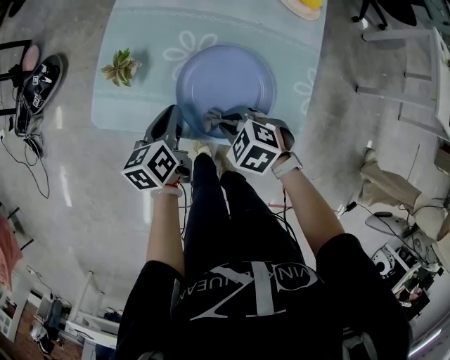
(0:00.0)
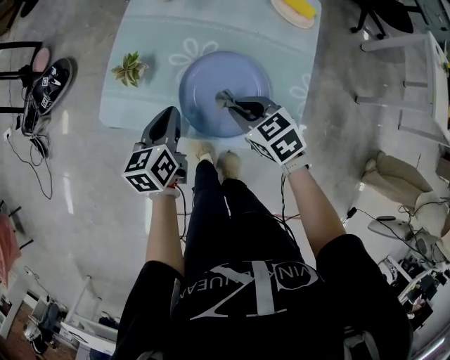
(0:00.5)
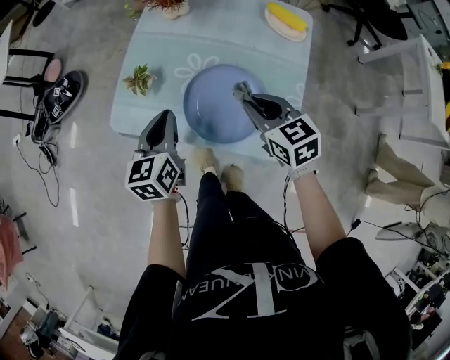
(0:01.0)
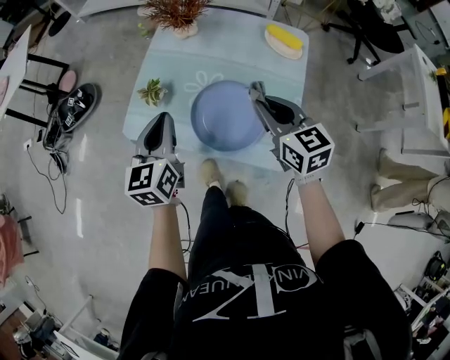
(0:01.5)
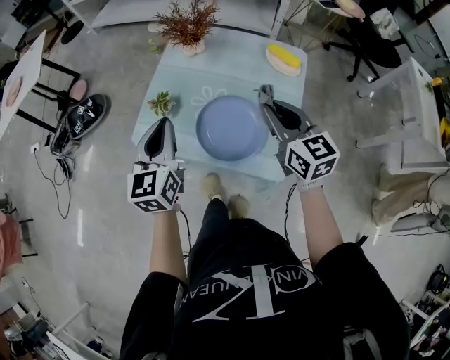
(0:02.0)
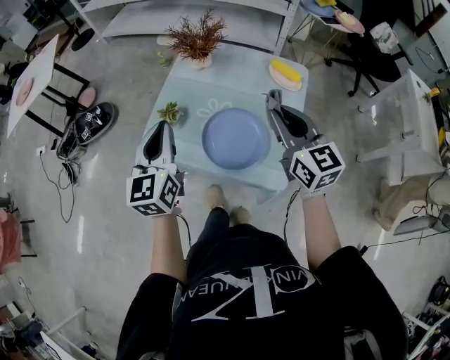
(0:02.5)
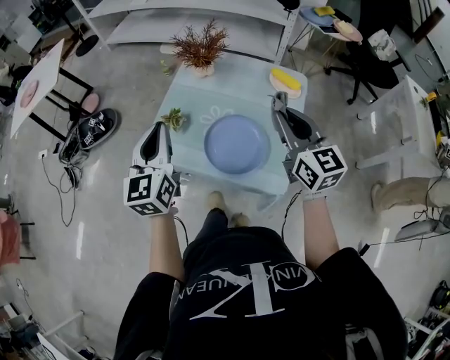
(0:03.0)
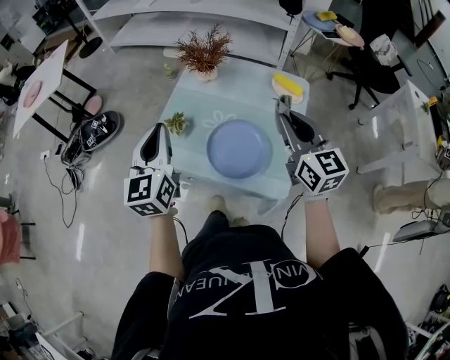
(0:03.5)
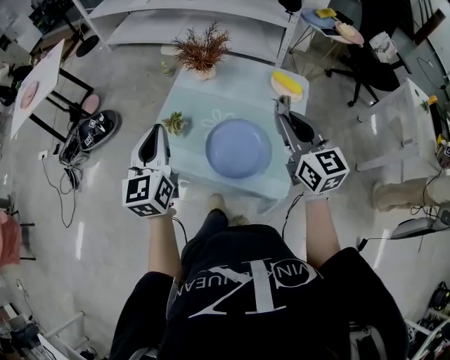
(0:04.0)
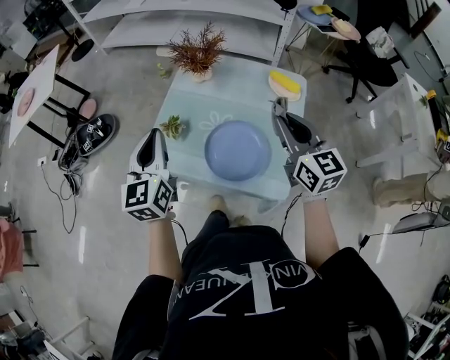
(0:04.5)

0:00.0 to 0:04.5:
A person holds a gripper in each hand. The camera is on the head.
0:00.0 to 0:02.0: The left gripper shifts approximately 25 cm upward, and turns by about 40 degrees. The right gripper moves upward and to the right, some 30 cm, and angles its fingers upward, by roughly 50 degrees.
0:02.0 to 0:04.5: The left gripper travels upward and to the left by approximately 10 cm, while the right gripper moves upward, roughly 5 cm.

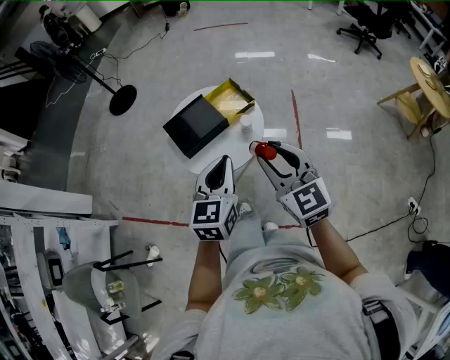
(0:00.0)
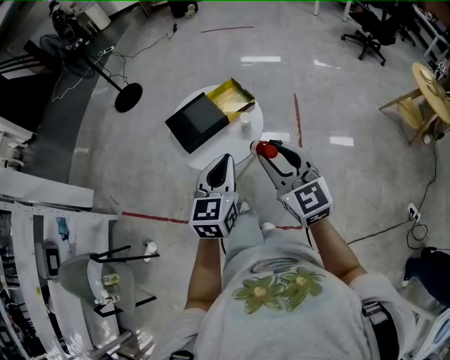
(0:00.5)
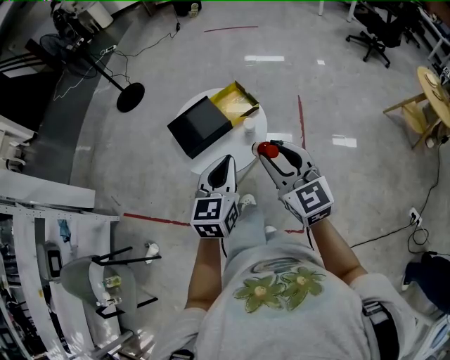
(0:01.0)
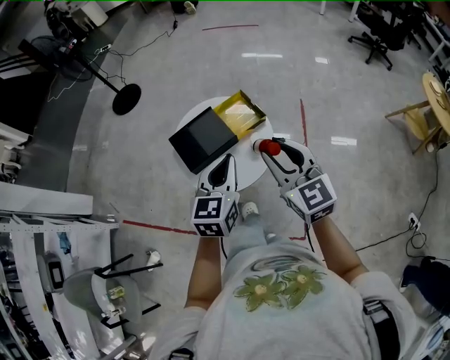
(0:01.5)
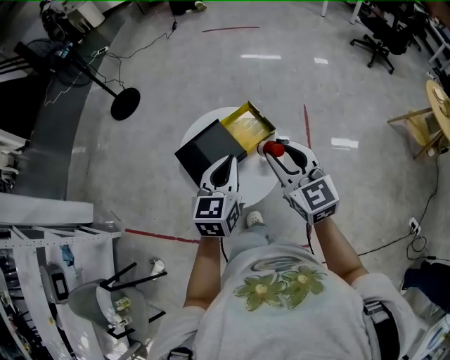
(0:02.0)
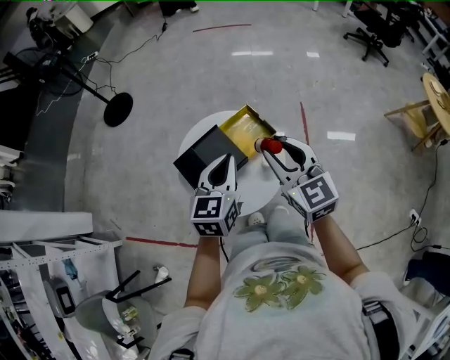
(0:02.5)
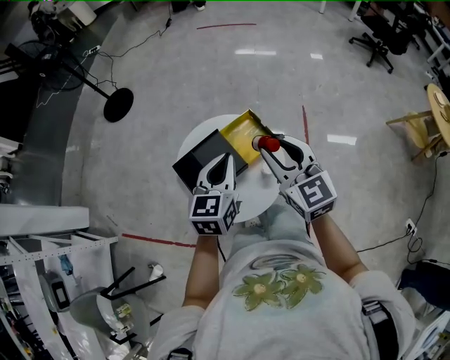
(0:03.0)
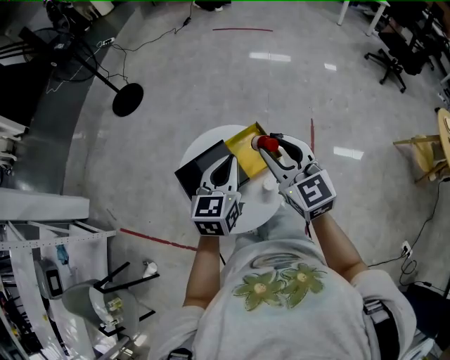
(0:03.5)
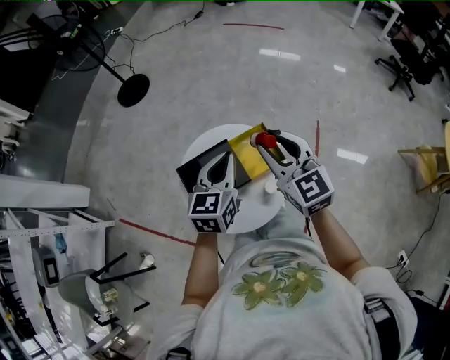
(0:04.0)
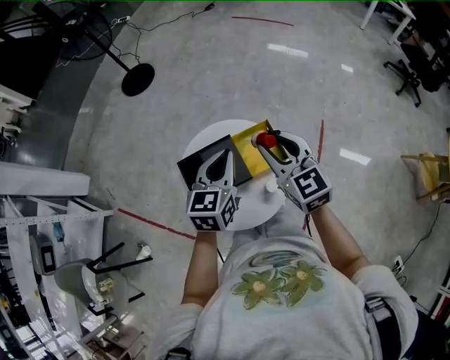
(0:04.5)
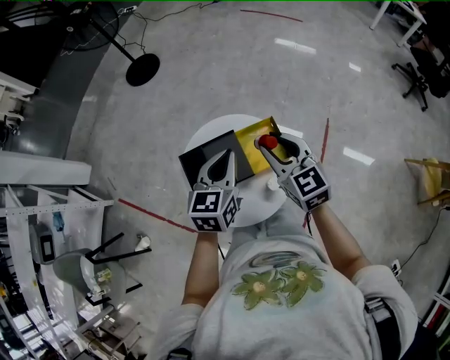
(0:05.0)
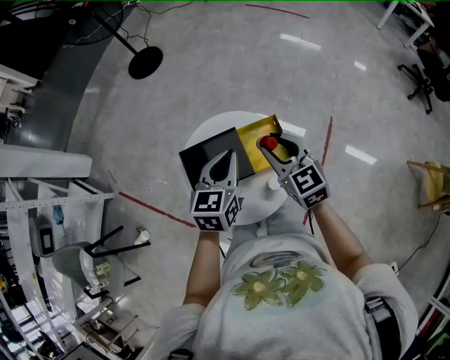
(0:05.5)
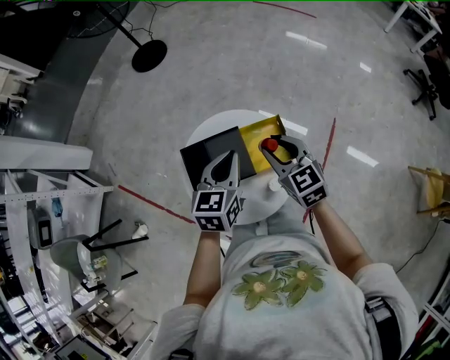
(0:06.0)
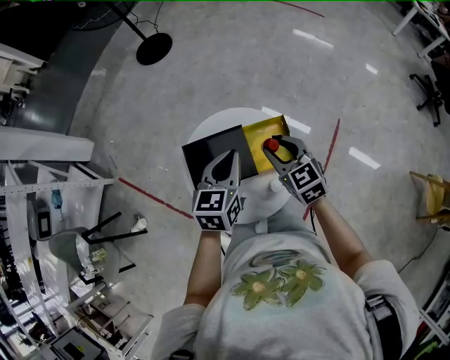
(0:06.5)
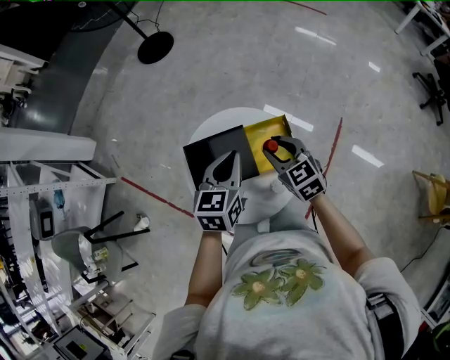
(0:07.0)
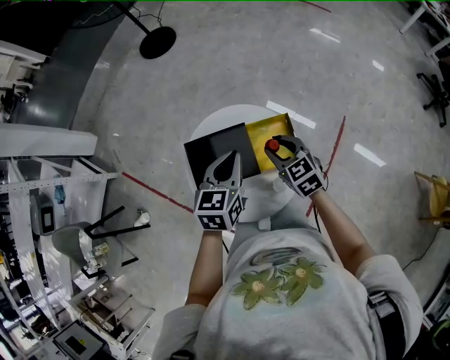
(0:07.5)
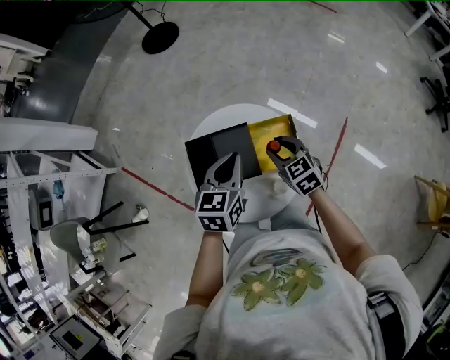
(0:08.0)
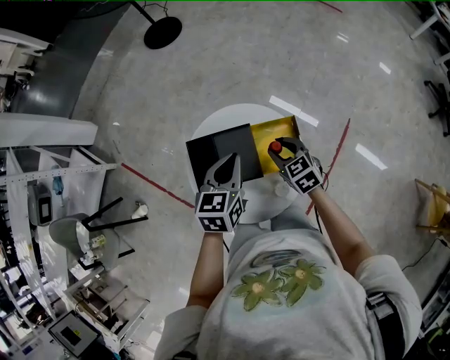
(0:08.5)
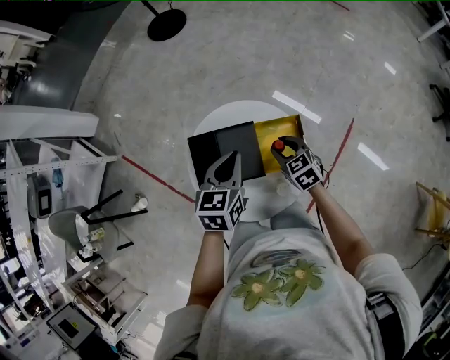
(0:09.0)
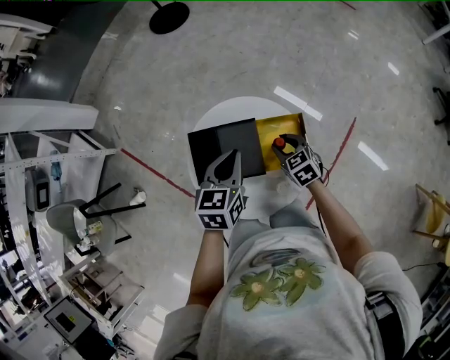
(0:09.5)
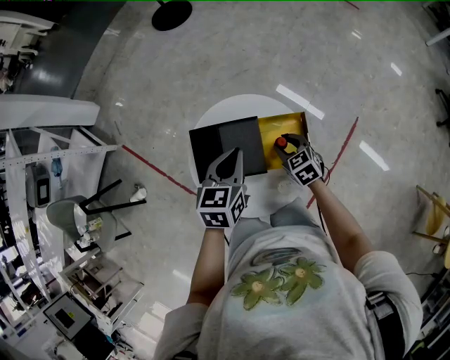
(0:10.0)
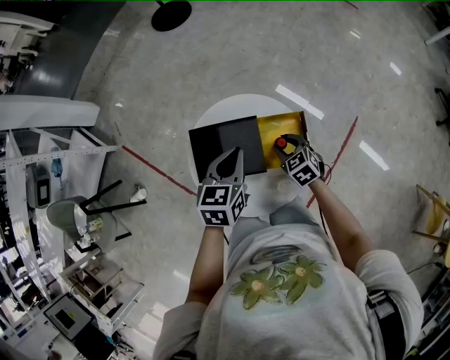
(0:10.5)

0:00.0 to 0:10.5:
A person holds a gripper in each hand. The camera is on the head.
0:00.0 to 0:02.0: Both grippers travel together forward, some 20 cm.
0:02.0 to 0:04.0: The two grippers go roughly 15 cm forward.
0:04.0 to 0:06.5: The left gripper heads downward, covering roughly 5 cm. The right gripper goes roughly 15 cm downward, and changes its angle by approximately 20 degrees.
0:06.5 to 0:08.5: The right gripper is displaced downward by approximately 10 cm.
0:08.5 to 0:10.5: The right gripper moves downward, some 5 cm.

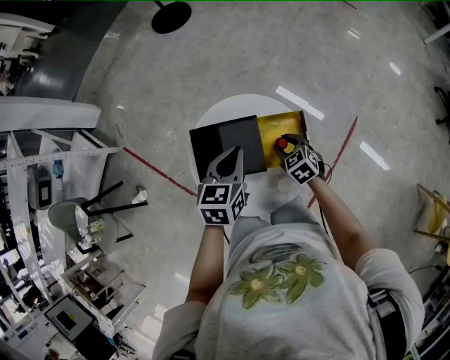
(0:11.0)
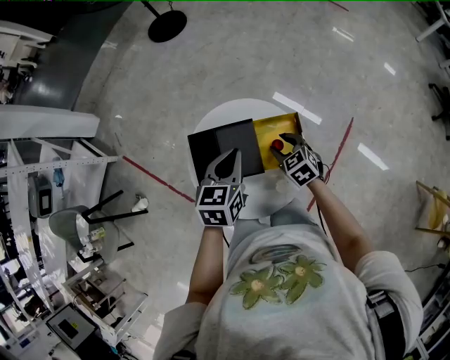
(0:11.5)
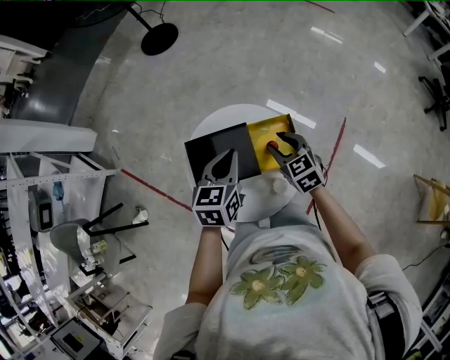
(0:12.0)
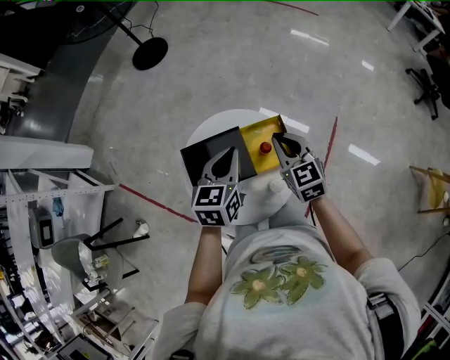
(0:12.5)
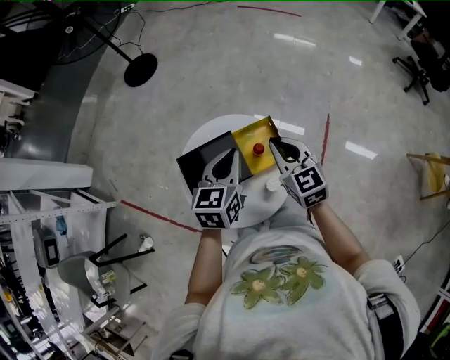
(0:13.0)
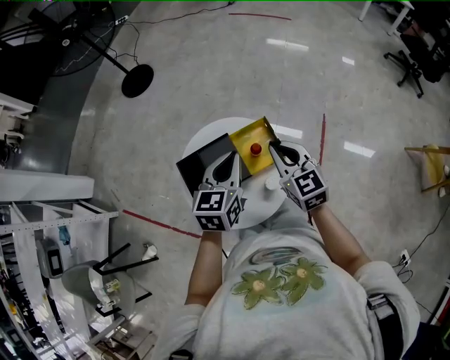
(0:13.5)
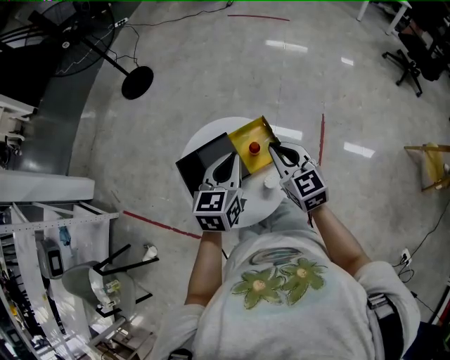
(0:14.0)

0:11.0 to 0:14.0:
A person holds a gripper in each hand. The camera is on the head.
0:11.0 to 0:12.5: The left gripper heads upward, covering roughly 5 cm. The right gripper shifts approximately 20 cm upward, changes its angle by about 30 degrees, and closes its fingers.
0:12.5 to 0:14.0: The right gripper travels backward by some 5 cm; the left gripper changes place by about 5 cm.

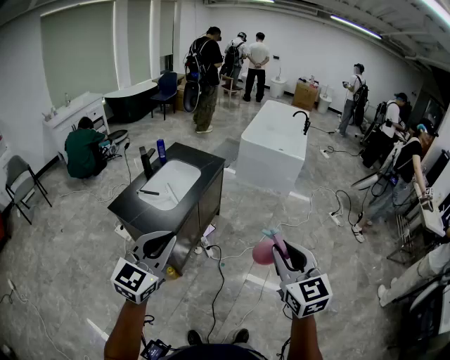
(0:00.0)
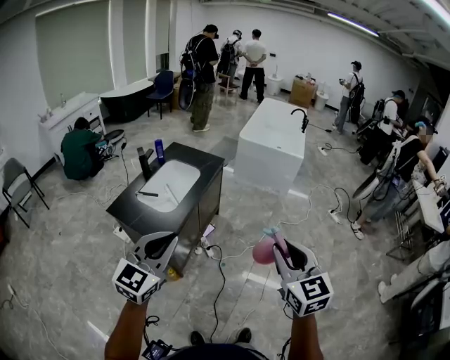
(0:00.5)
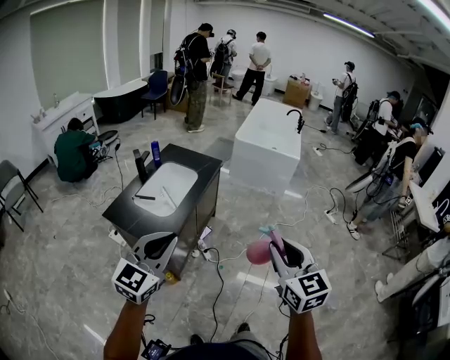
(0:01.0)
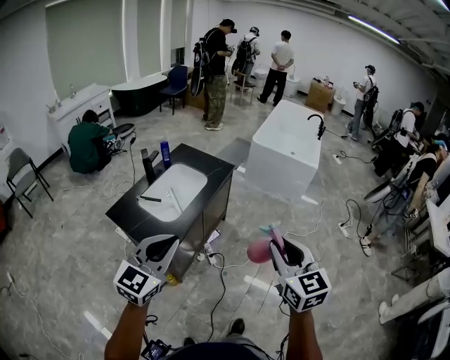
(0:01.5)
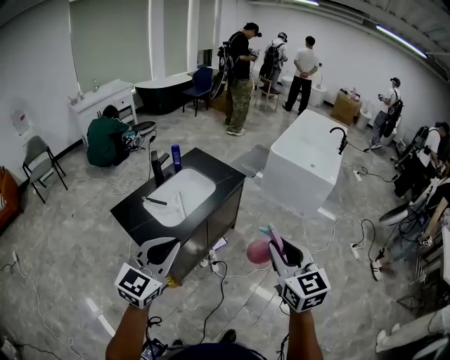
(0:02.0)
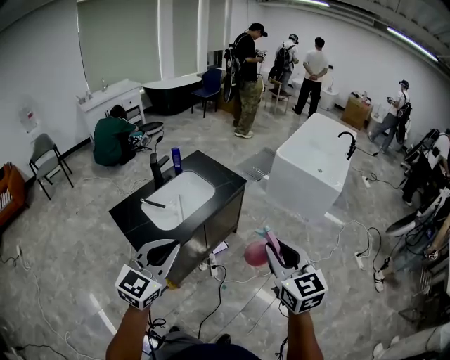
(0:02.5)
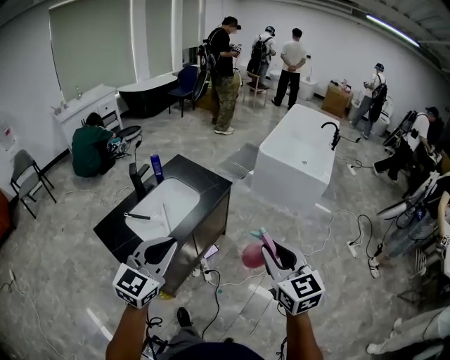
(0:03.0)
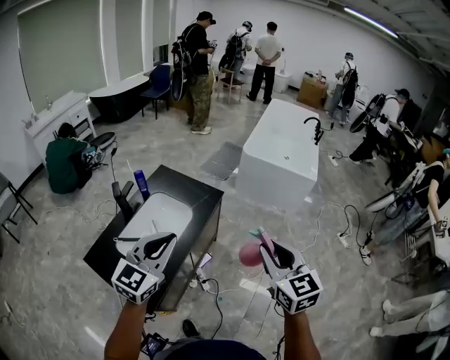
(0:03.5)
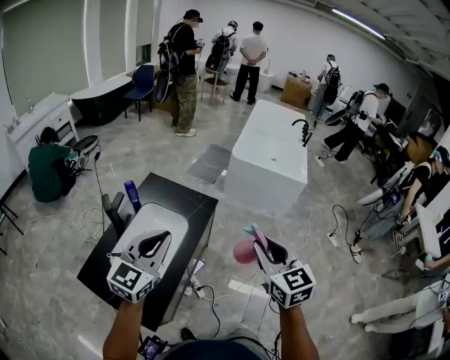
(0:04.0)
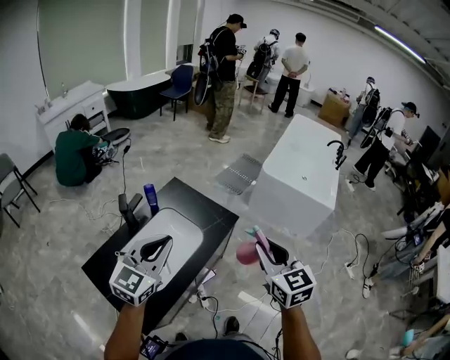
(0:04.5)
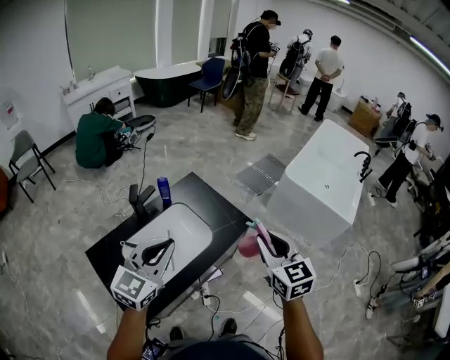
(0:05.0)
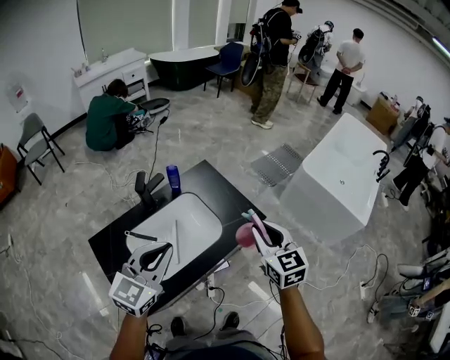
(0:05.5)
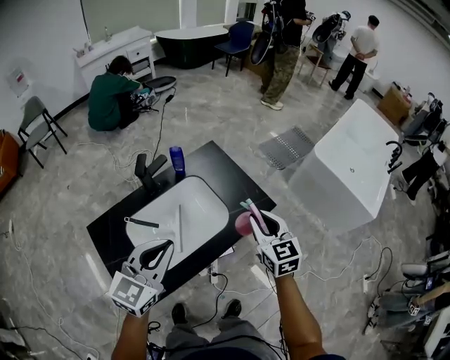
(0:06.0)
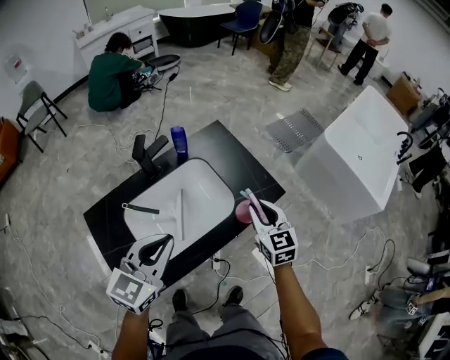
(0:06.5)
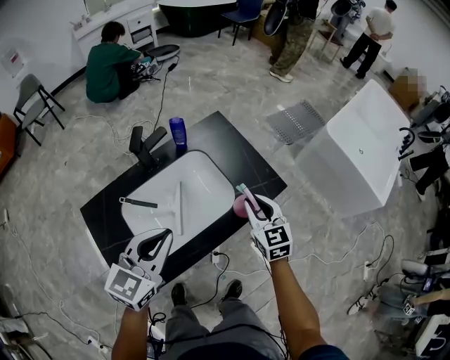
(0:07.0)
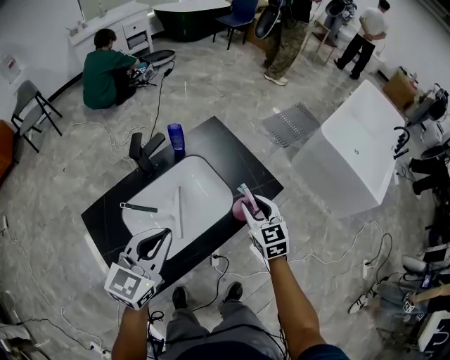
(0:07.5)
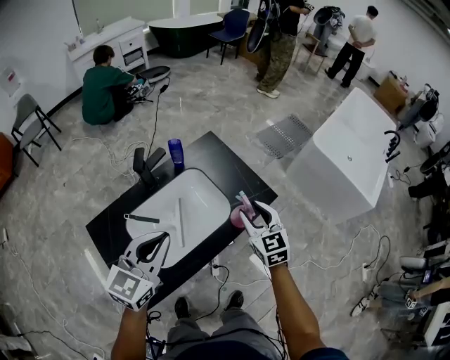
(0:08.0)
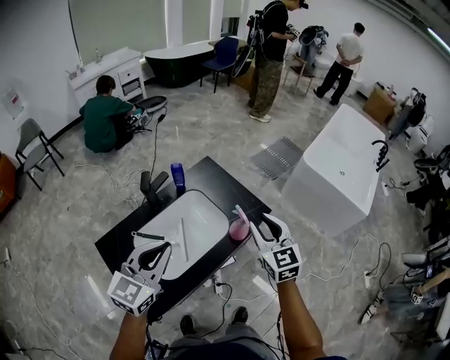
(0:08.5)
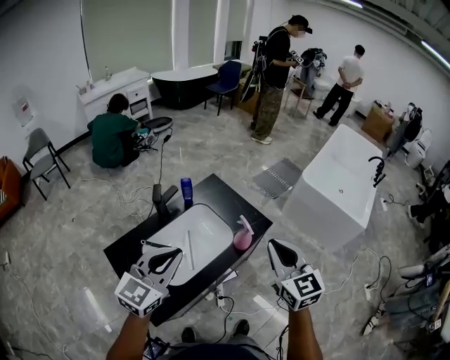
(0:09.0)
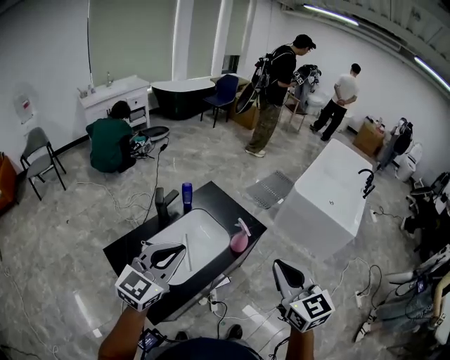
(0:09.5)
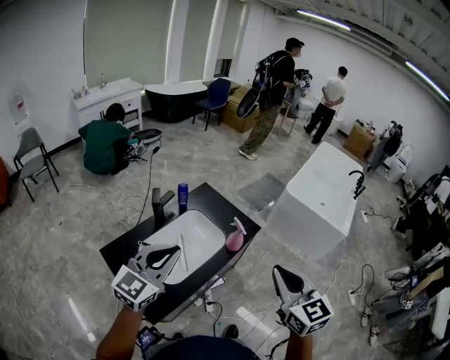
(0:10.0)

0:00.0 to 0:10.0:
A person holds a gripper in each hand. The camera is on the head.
0:00.0 to 0:02.0: Both grippers move forward, about 25 cm.
0:02.0 to 0:04.0: Both grippers move forward, about 30 cm.
0:04.0 to 0:06.0: The right gripper ends up roughly 35 cm from where it was, and swivels approximately 30 degrees. The left gripper travels downward by some 10 cm, and turns by some 30 degrees.
0:06.0 to 0:08.0: The right gripper opens.
0:08.0 to 0:10.0: The right gripper moves backward and upward, approximately 40 cm, and closes its fingers; the left gripper heads upward and backward, covering some 20 cm.
